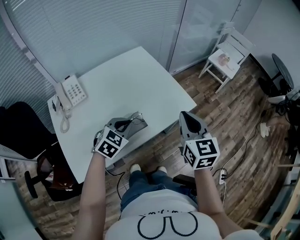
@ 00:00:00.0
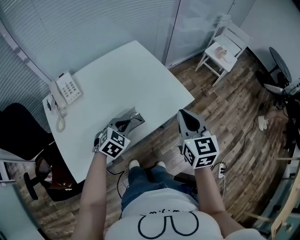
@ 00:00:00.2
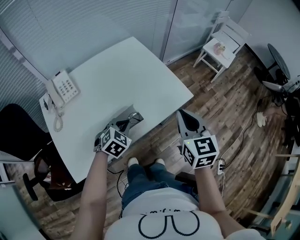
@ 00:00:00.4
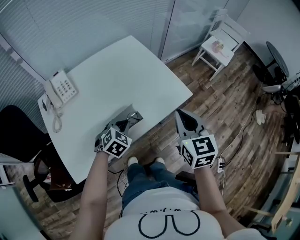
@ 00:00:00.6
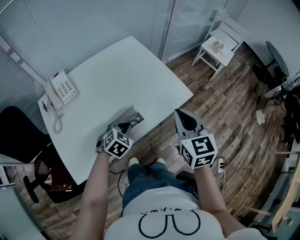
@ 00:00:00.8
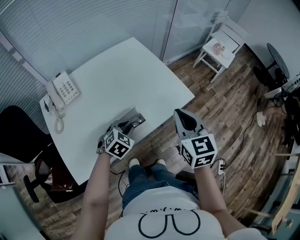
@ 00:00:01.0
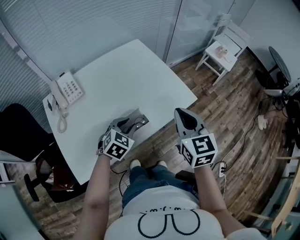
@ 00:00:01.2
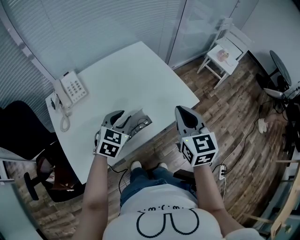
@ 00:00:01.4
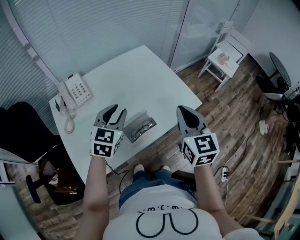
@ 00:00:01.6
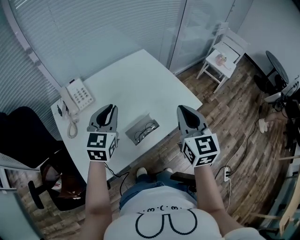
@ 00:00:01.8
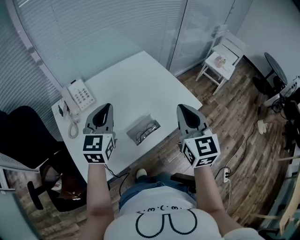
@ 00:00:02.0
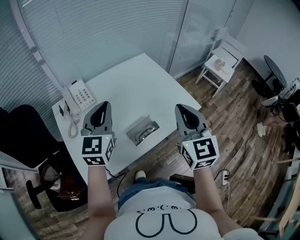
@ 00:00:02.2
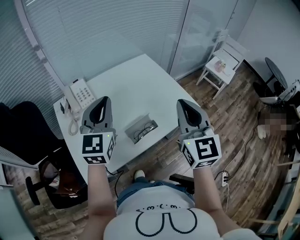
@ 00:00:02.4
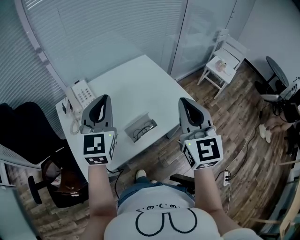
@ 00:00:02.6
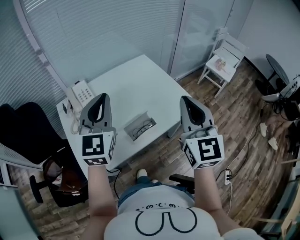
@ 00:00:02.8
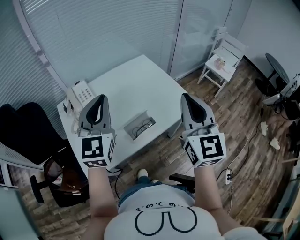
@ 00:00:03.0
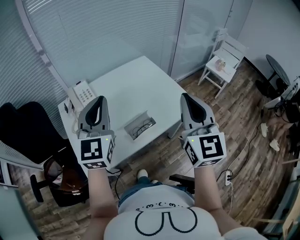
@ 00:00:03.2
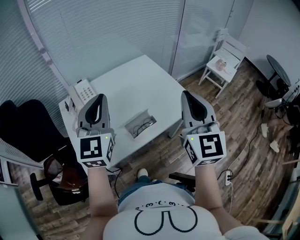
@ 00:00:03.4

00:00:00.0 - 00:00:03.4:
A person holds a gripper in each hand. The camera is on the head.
00:00:00.0 - 00:00:01.6: The left gripper moves to the left and upward, about 10 cm, turns by about 20 degrees, and opens its fingers. Meanwhile the right gripper travels to the left by roughly 5 cm.
00:00:01.6 - 00:00:03.4: Both grippers travel together upward and backward, roughly 20 cm. The left gripper changes its angle by about 30 degrees, and closes up. The right gripper rotates some 20 degrees.

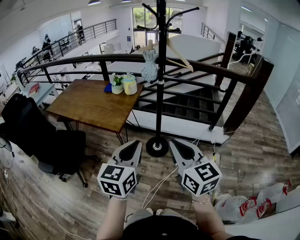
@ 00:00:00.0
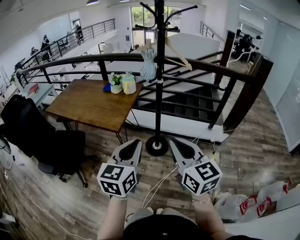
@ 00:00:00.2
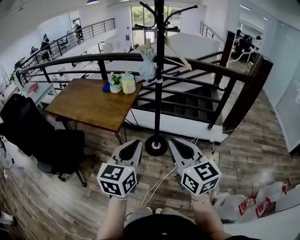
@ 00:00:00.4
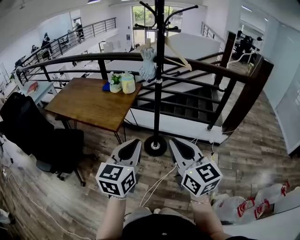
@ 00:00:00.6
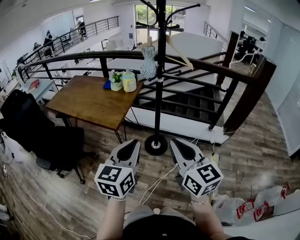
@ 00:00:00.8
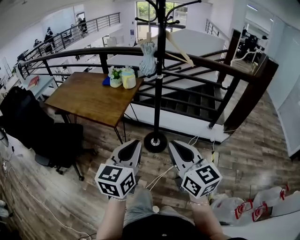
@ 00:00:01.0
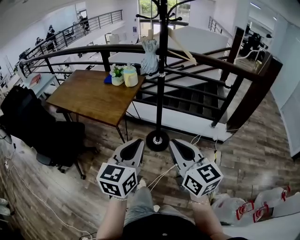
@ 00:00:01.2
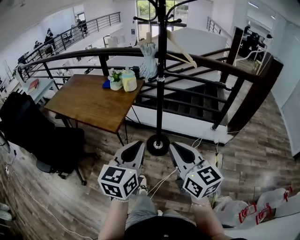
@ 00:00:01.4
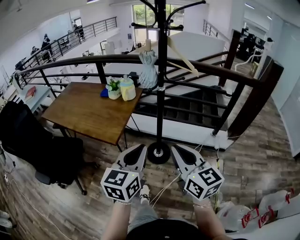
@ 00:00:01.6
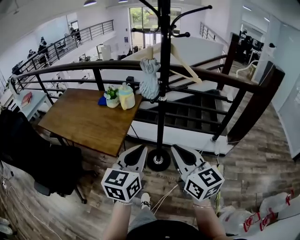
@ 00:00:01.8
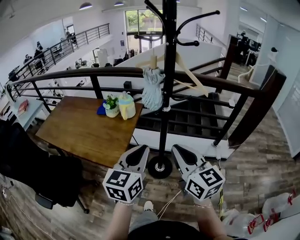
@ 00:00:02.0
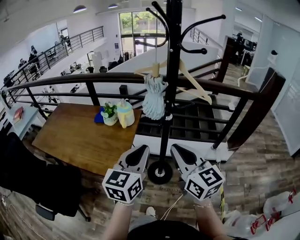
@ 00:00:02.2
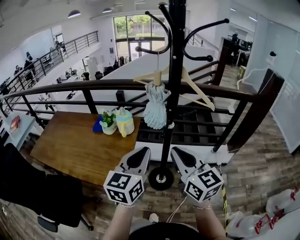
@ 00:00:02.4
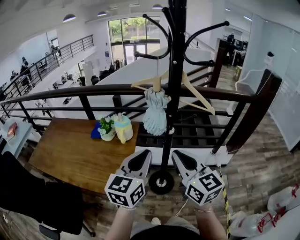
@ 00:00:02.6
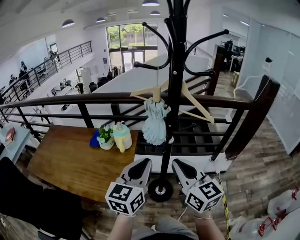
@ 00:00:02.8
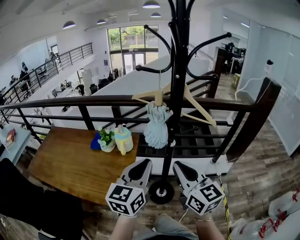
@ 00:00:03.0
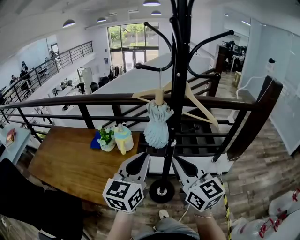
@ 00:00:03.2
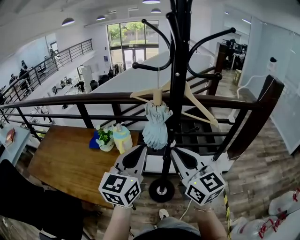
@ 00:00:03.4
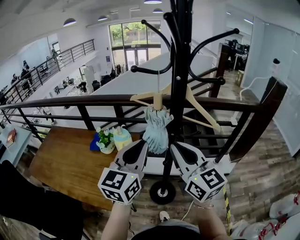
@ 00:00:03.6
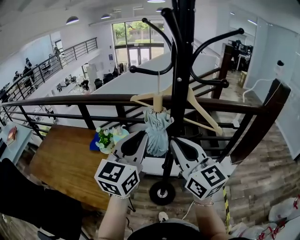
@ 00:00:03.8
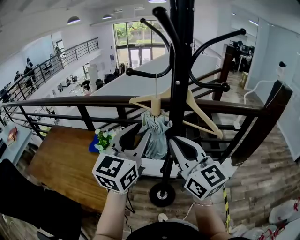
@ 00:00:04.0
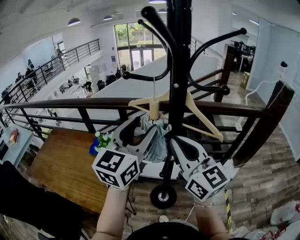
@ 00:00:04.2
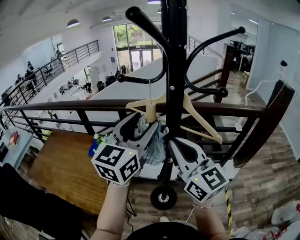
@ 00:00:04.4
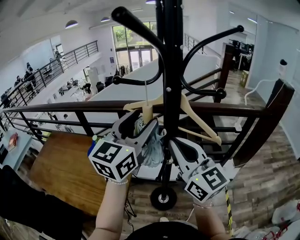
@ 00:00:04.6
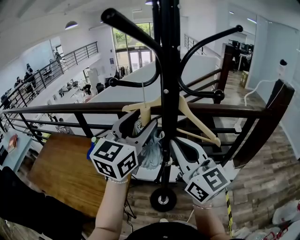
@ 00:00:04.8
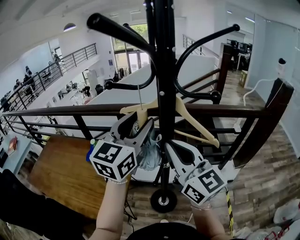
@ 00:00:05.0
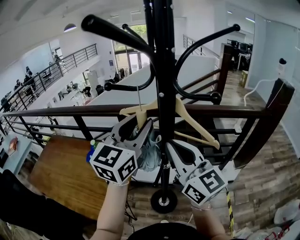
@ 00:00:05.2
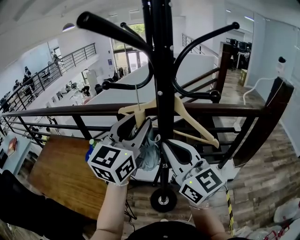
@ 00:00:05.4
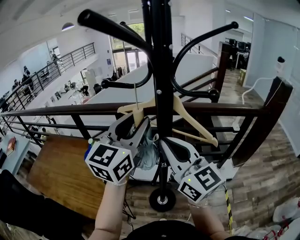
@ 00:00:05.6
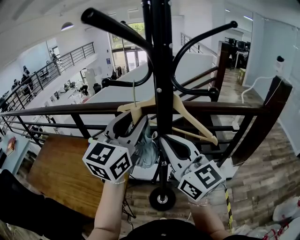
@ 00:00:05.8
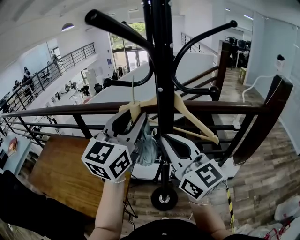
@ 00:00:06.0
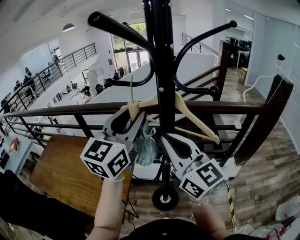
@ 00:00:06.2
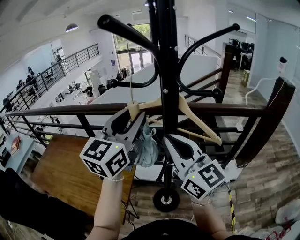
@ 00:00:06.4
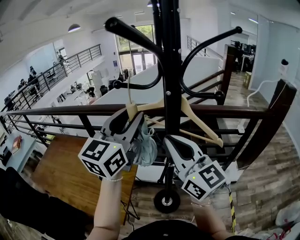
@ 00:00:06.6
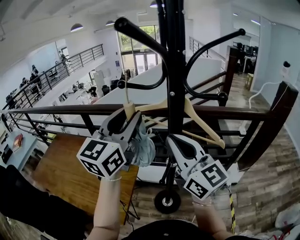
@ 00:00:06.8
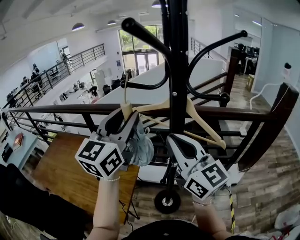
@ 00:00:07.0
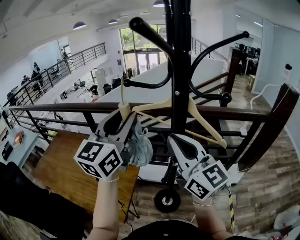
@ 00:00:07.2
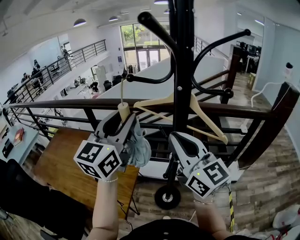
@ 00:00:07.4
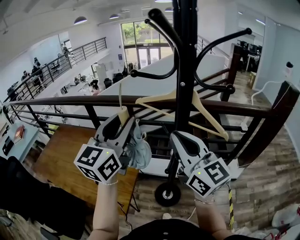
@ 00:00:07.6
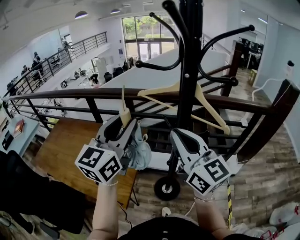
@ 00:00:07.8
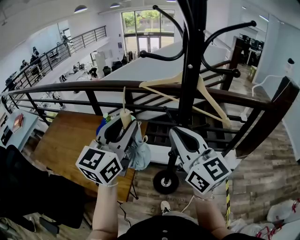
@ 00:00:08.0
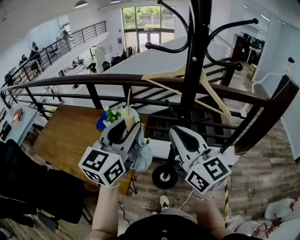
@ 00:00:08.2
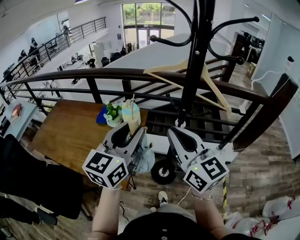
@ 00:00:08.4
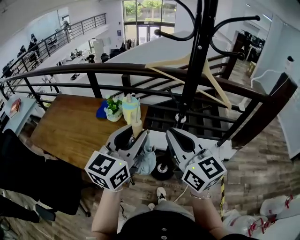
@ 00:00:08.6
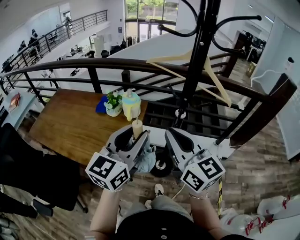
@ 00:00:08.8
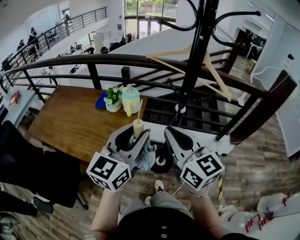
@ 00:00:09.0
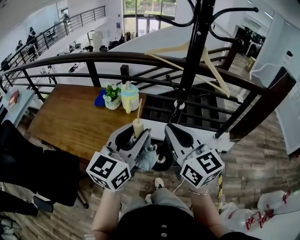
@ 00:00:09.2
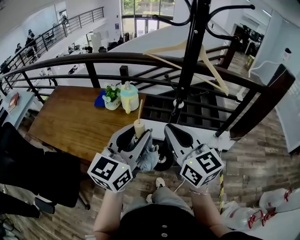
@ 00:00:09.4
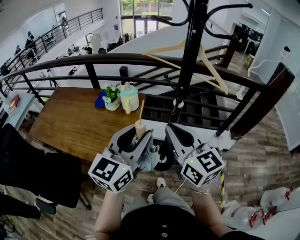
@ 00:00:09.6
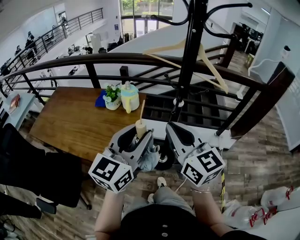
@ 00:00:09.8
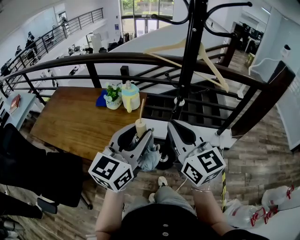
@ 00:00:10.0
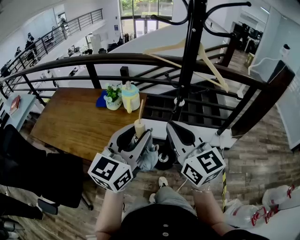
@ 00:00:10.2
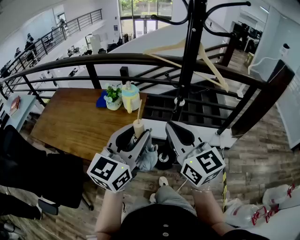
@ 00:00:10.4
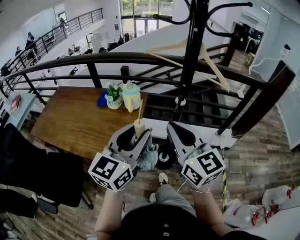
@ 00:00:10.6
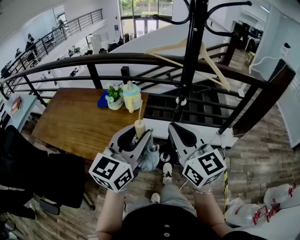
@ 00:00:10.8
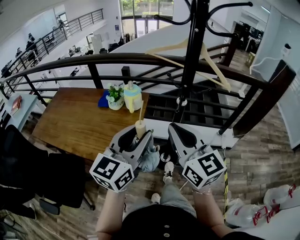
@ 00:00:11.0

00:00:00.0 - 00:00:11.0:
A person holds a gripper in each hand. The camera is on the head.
00:00:00.0 - 00:00:01.6: The grippers both shift forward by roughly 10 cm.
00:00:01.6 - 00:00:03.2: The two grippers go some 30 cm forward.
00:00:03.2 - 00:00:04.8: The right gripper heads forward and upward, covering roughly 15 cm, while the left gripper shifts approximately 20 cm forward, upward and to the right, and opens up.
00:00:04.8 - 00:00:06.2: The left gripper closes.
00:00:06.2 - 00:00:07.8: The right gripper shifts by roughly 5 cm. Meanwhile the left gripper moves to the left and backward, some 10 cm.
00:00:07.8 - 00:00:09.4: The two grippers go some 20 cm backward and downward.
00:00:09.4 - 00:00:11.0: Both grippers stay about where they are.

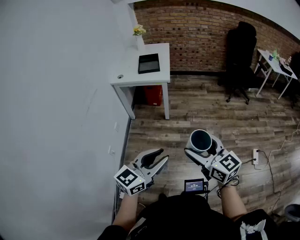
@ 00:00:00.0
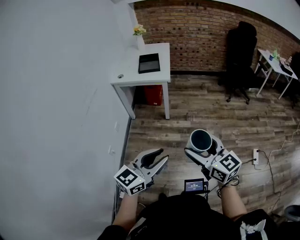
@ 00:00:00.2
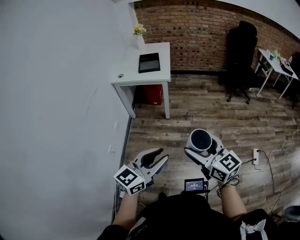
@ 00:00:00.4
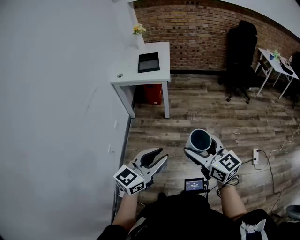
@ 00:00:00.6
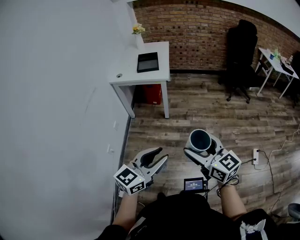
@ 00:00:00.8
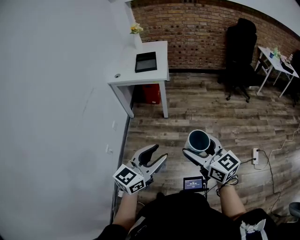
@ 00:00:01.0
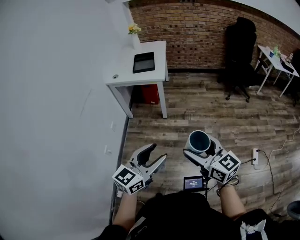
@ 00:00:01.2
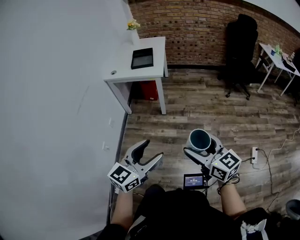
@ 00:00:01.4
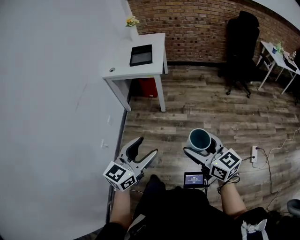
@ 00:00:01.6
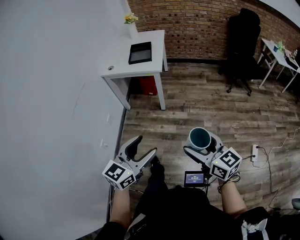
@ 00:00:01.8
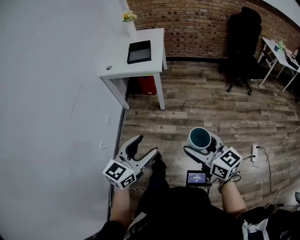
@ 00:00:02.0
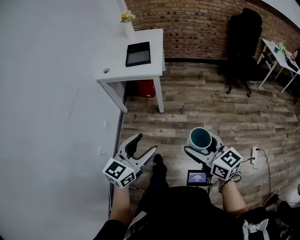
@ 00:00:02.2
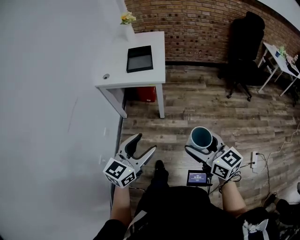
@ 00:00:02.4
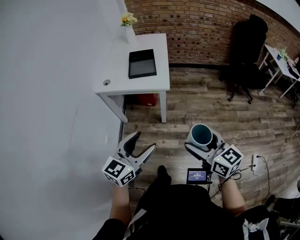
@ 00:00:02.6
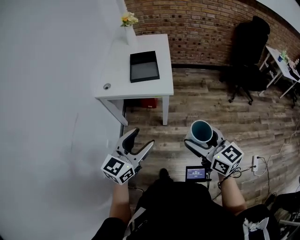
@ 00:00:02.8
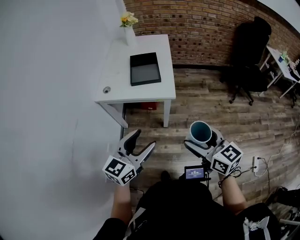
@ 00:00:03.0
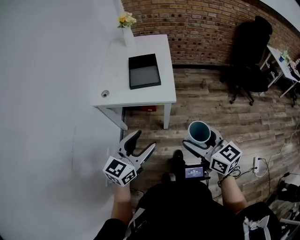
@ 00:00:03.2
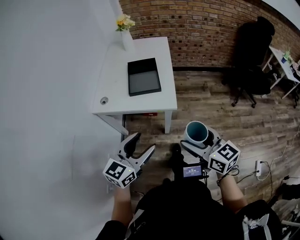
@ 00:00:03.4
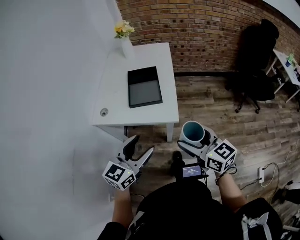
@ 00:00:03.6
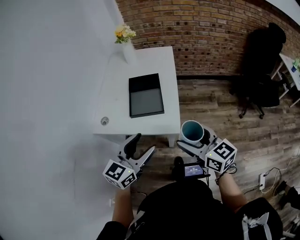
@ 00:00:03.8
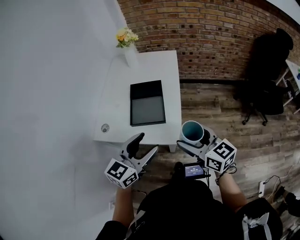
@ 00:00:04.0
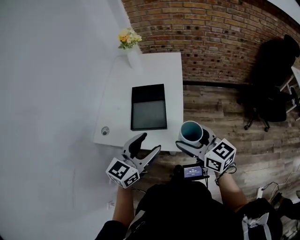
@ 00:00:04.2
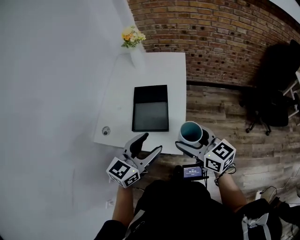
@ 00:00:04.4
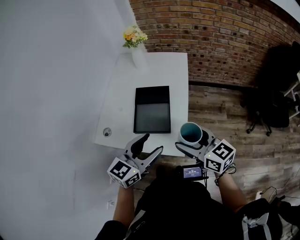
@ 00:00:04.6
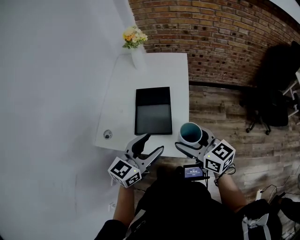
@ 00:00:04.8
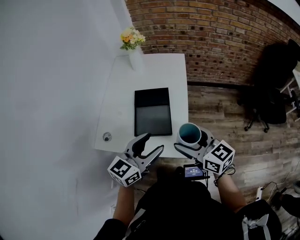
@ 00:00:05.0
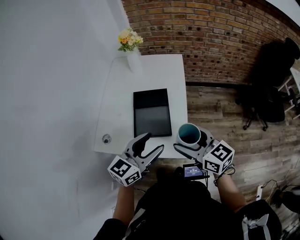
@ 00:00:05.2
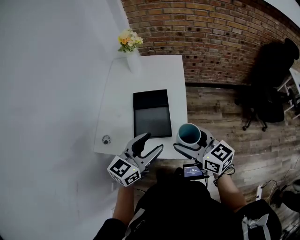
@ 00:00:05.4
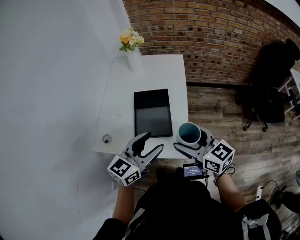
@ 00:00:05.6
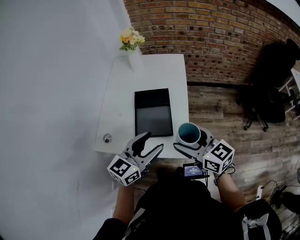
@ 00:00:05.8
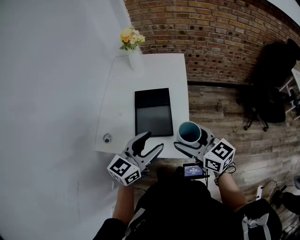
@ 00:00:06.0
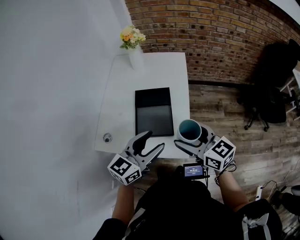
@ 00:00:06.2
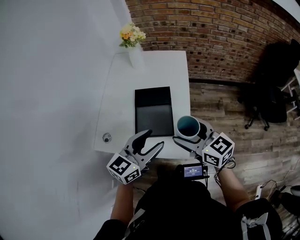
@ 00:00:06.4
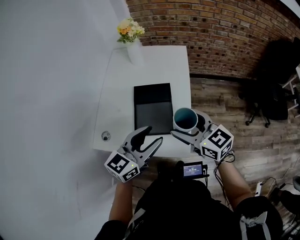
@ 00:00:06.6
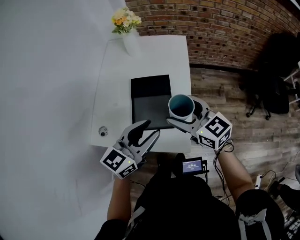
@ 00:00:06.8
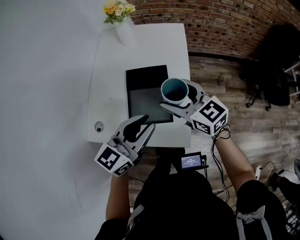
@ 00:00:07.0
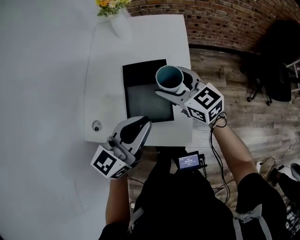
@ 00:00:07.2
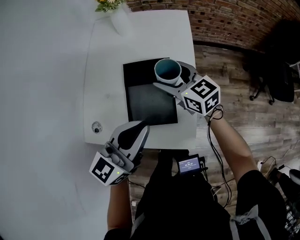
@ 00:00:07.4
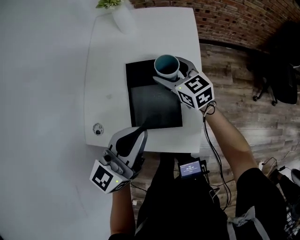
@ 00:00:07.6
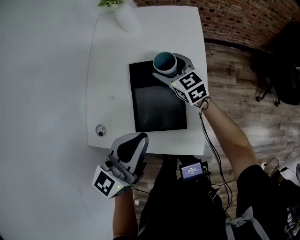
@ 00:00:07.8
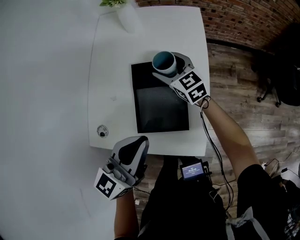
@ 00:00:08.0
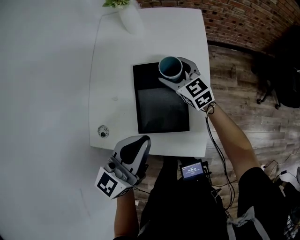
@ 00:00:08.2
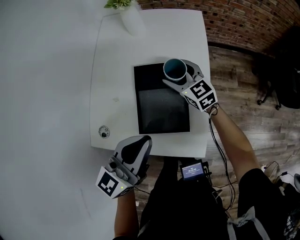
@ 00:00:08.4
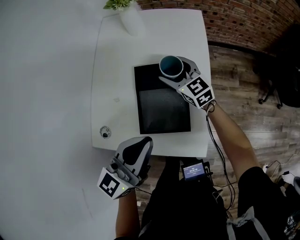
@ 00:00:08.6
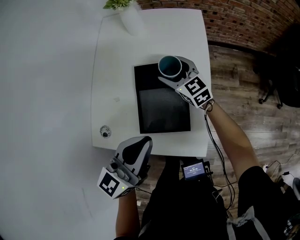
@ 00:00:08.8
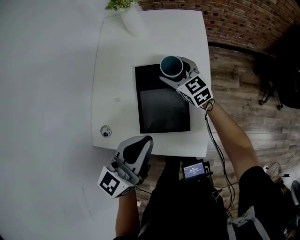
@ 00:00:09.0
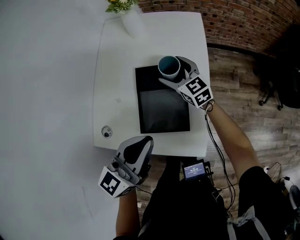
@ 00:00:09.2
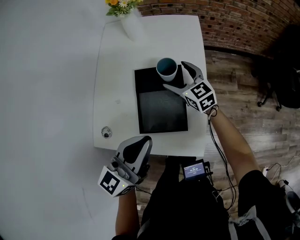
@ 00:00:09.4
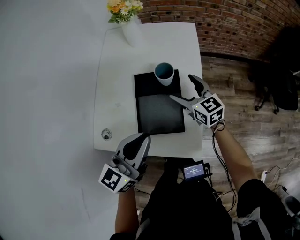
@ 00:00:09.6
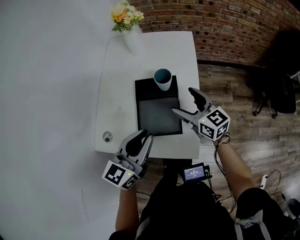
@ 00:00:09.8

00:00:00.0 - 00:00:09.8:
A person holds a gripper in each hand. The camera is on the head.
00:00:00.0 - 00:00:01.4: The left gripper moves about 5 cm, and opens up. The right gripper heads to the right, covering about 10 cm.
00:00:01.4 - 00:00:02.8: The right gripper heads forward, covering some 35 cm. Meanwhile the left gripper shifts some 40 cm forward and to the left.
00:00:02.8 - 00:00:04.2: Both grippers move forward, roughly 40 cm.
00:00:04.2 - 00:00:05.6: The left gripper moves forward, some 5 cm; the right gripper travels forward and to the left by approximately 10 cm.
00:00:05.6 - 00:00:07.0: The right gripper moves forward, roughly 15 cm. Meanwhile the left gripper shifts about 5 cm forward, and closes up.
00:00:07.0 - 00:00:08.4: The right gripper goes some 20 cm downward and forward; the left gripper moves to the left, some 5 cm, and closes.
00:00:08.4 - 00:00:09.8: The right gripper heads backward, upward and to the right, covering about 15 cm.
